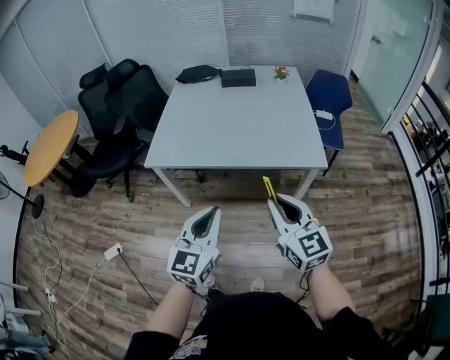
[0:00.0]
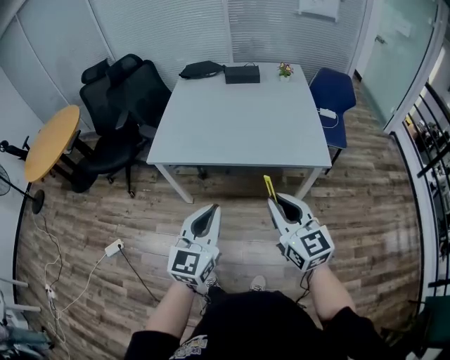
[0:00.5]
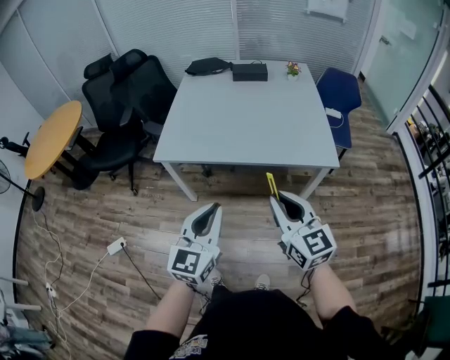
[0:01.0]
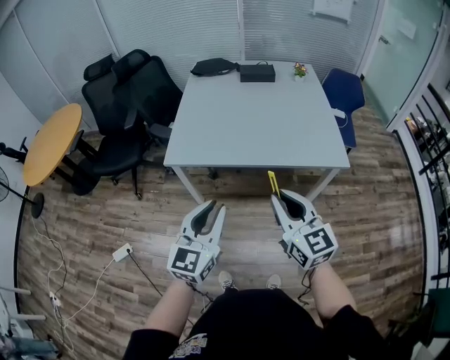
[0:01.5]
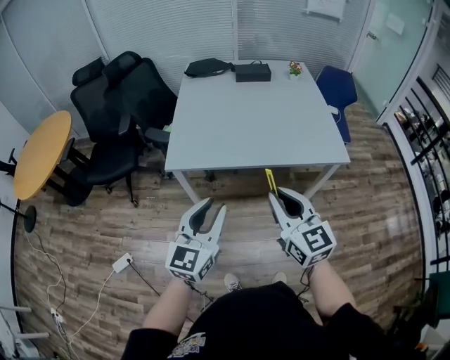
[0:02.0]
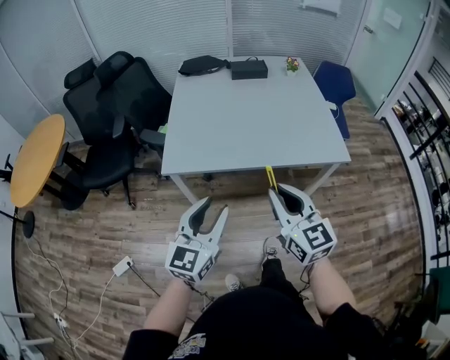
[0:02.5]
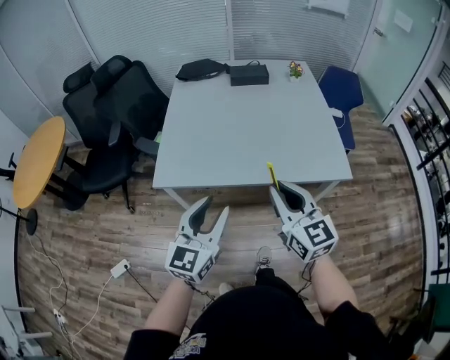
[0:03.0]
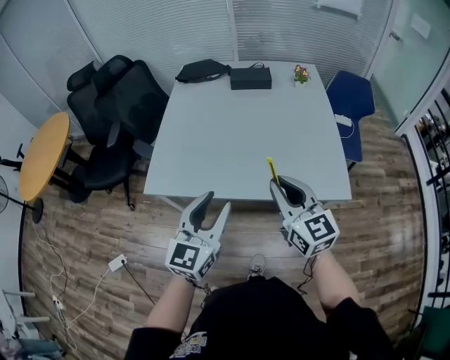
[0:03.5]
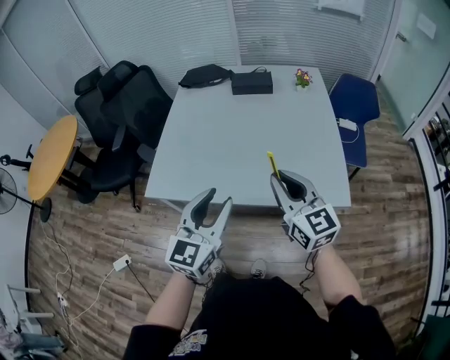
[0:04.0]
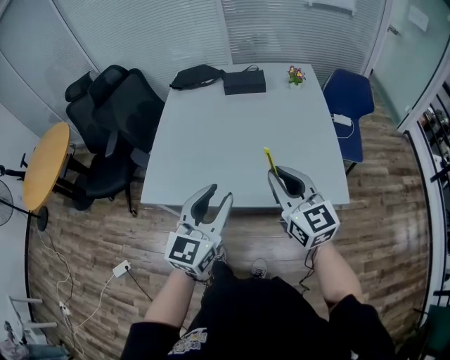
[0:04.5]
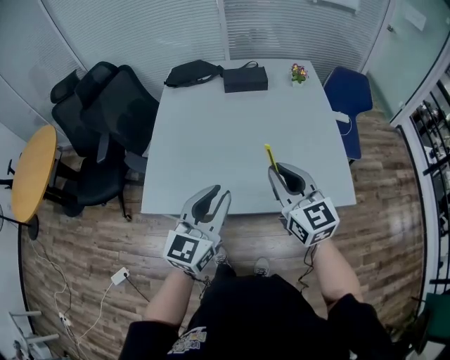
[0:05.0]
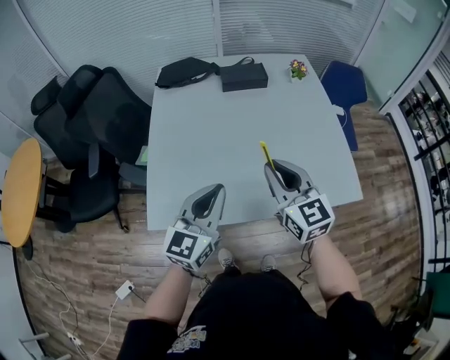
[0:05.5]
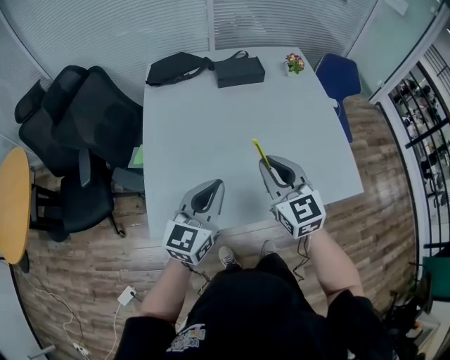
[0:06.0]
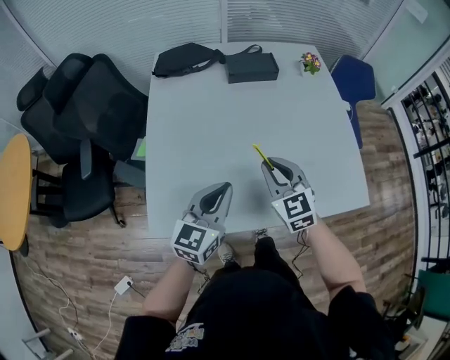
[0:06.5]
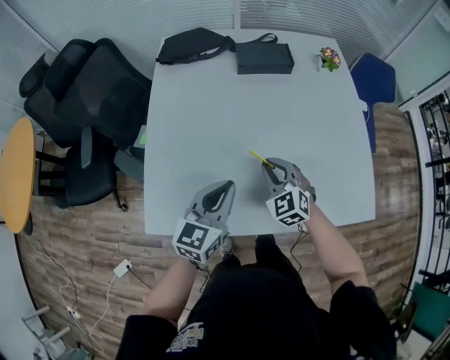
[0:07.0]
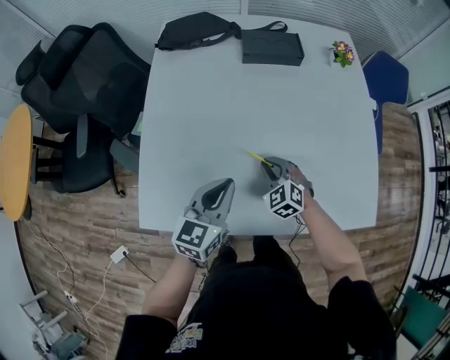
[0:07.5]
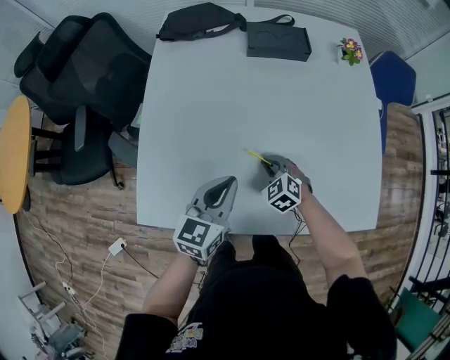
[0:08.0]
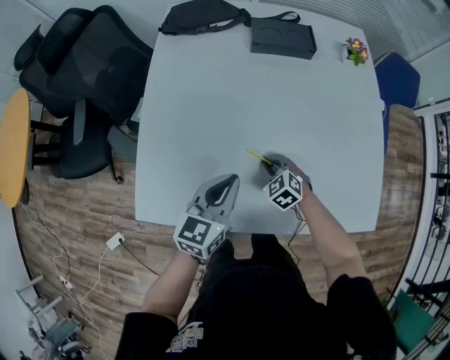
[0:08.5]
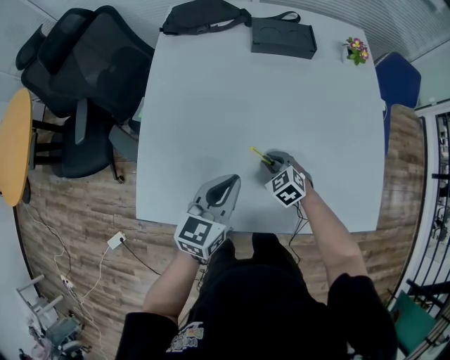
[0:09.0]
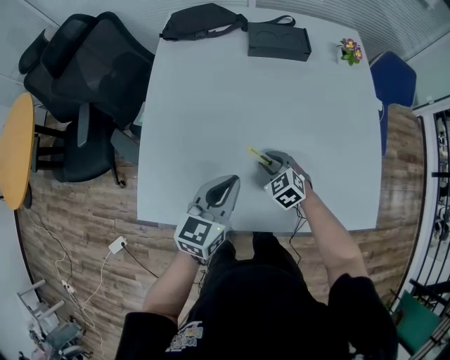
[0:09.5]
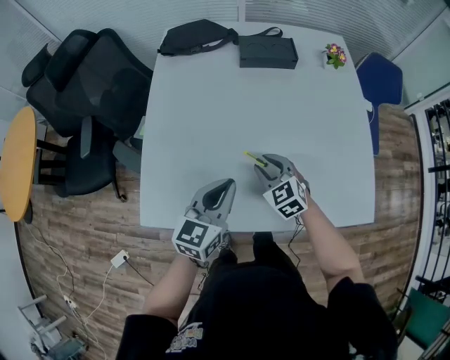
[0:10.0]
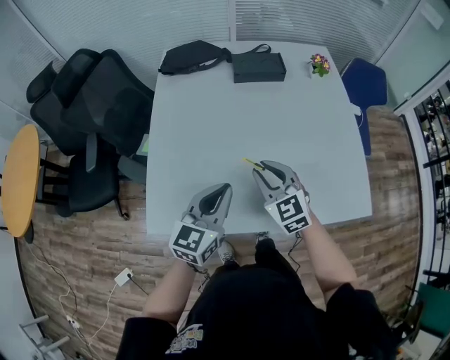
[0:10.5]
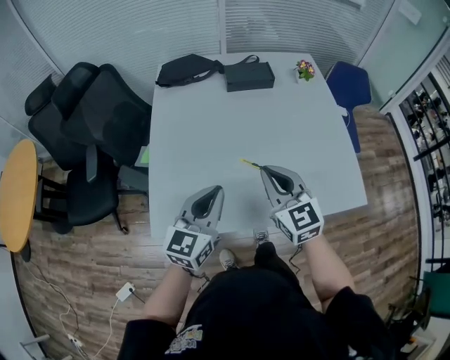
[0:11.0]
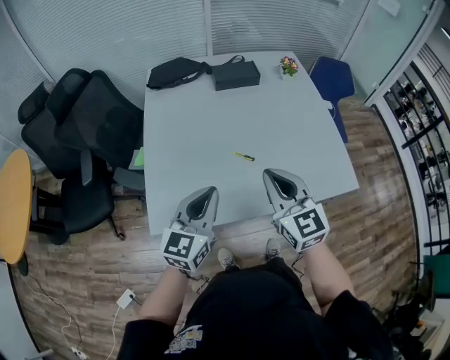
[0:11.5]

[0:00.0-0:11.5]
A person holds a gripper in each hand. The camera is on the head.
0:00.0 to 0:02.0: The grippers both shift to the left by roughly 20 cm. The left gripper opens up.
0:02.0 to 0:04.0: Both grippers travel together forward and to the right, roughly 30 cm.
0:04.0 to 0:06.0: The left gripper heads forward and to the left, covering approximately 25 cm, turns by about 20 degrees, and closes its fingers. Meanwhile the right gripper moves to the left and forward, roughly 25 cm, and changes its angle by about 20 degrees.
0:06.0 to 0:07.5: The right gripper travels downward and forward by about 25 cm, and points its fingers approximately 30 degrees further downward; the left gripper goes some 15 cm downward and forward.
0:07.5 to 0:09.5: The right gripper opens up.
0:09.5 to 0:11.5: The left gripper is displaced backward, upward and to the left by some 15 cm, while the right gripper shifts approximately 35 cm upward and backward, points its fingers approximately 40 degrees further upward, and closes up.

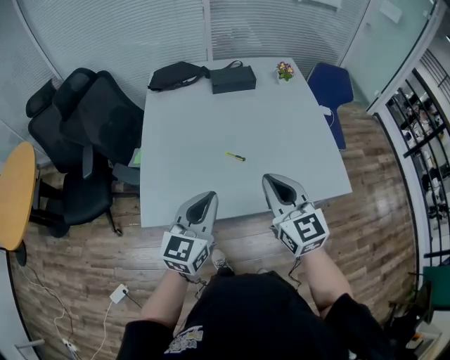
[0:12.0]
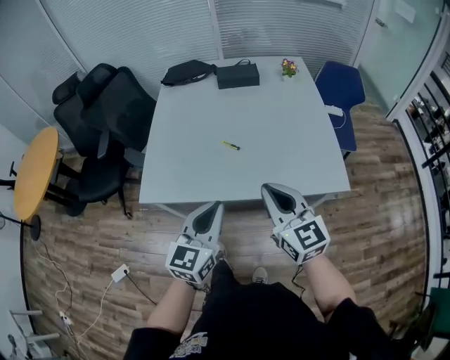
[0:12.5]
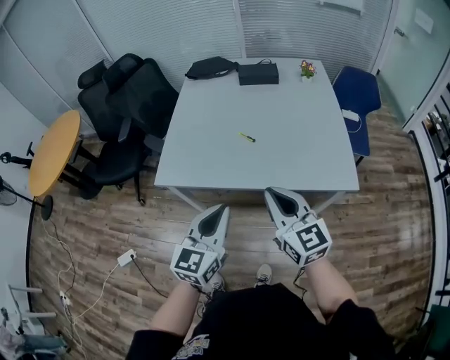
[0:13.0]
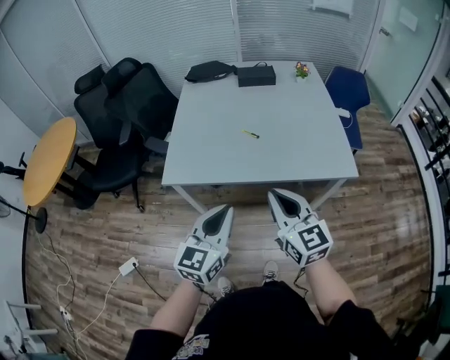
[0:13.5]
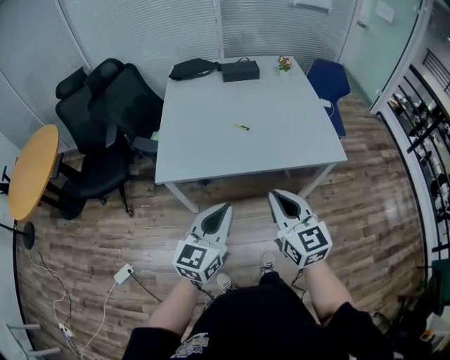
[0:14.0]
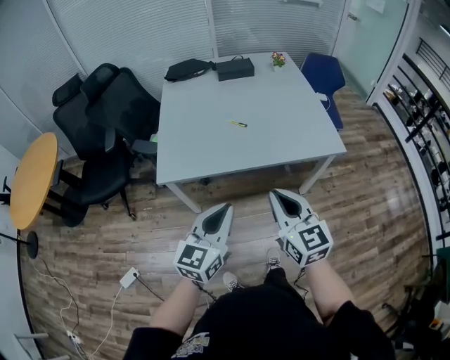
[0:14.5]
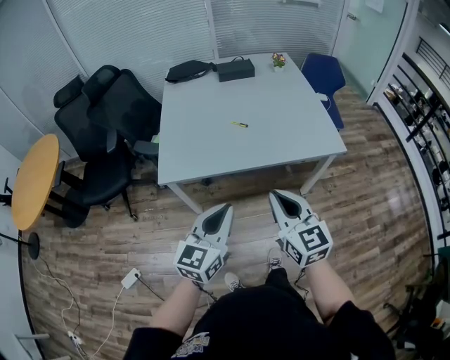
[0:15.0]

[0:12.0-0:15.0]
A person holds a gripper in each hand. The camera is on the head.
0:12.0 to 0:13.5: Both grippers move backward, about 20 cm.
0:13.5 to 0:15.0: The right gripper goes some 5 cm backward.

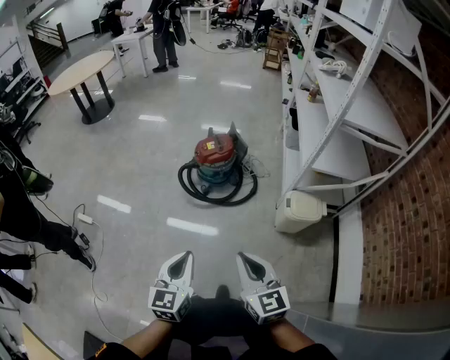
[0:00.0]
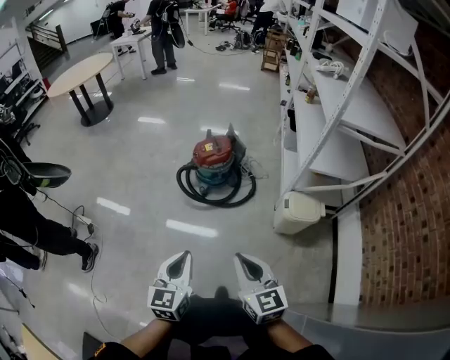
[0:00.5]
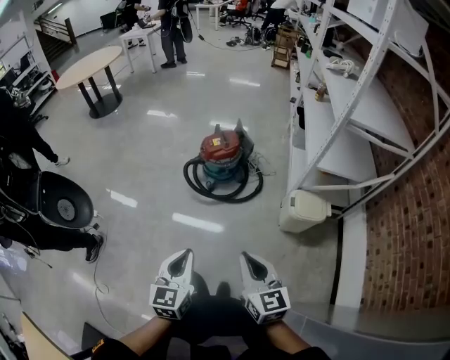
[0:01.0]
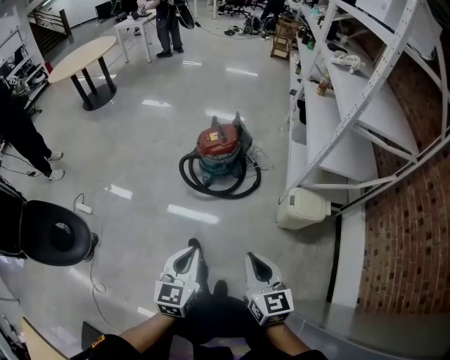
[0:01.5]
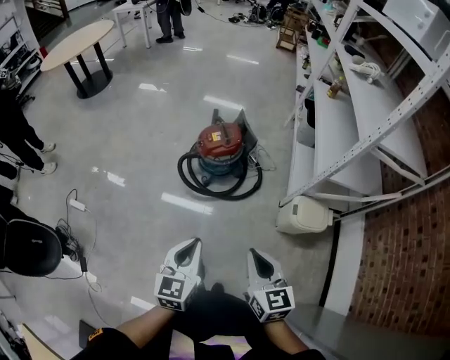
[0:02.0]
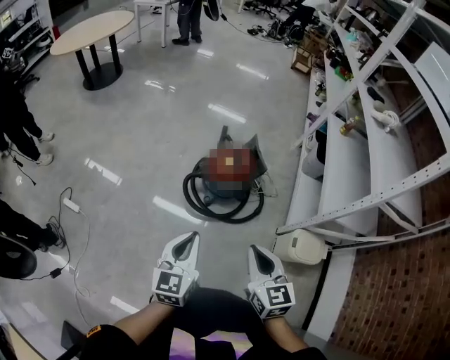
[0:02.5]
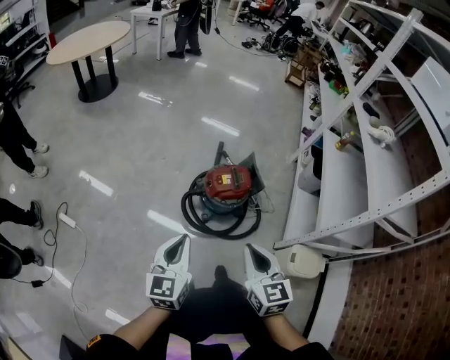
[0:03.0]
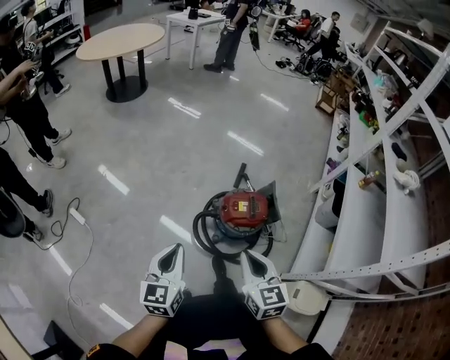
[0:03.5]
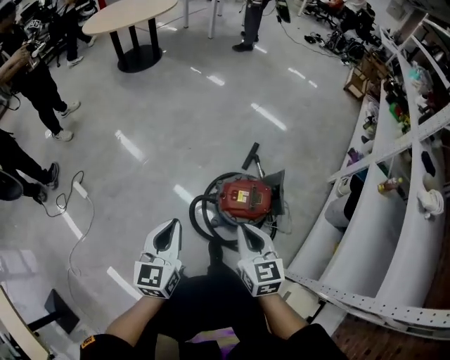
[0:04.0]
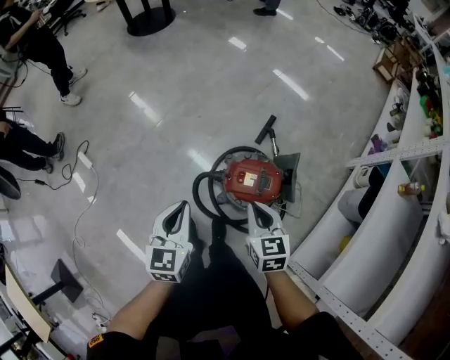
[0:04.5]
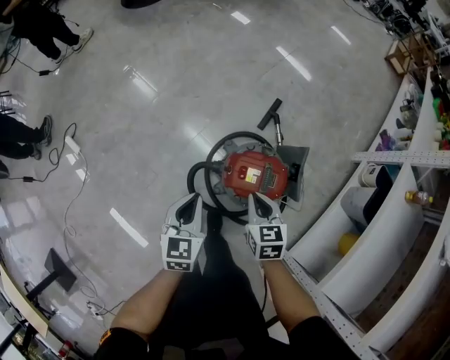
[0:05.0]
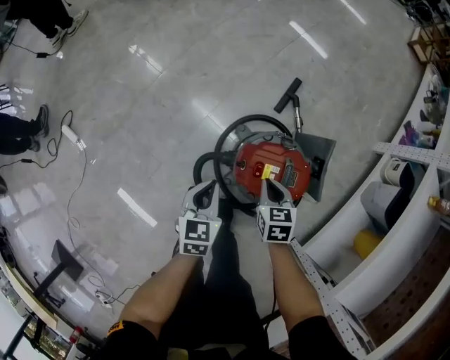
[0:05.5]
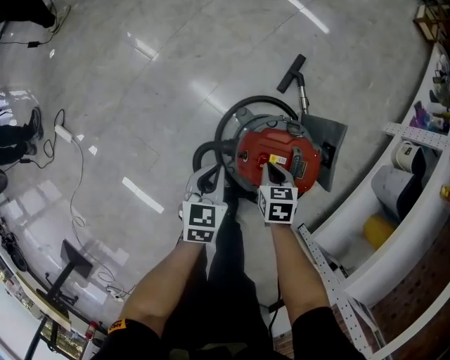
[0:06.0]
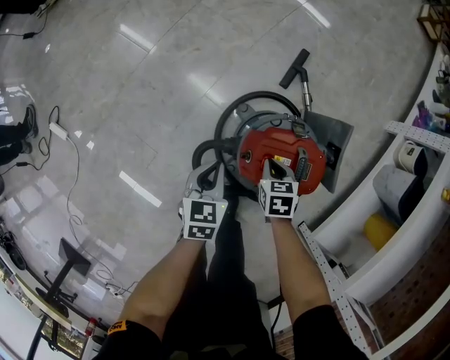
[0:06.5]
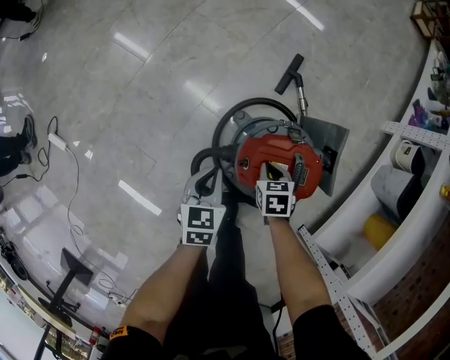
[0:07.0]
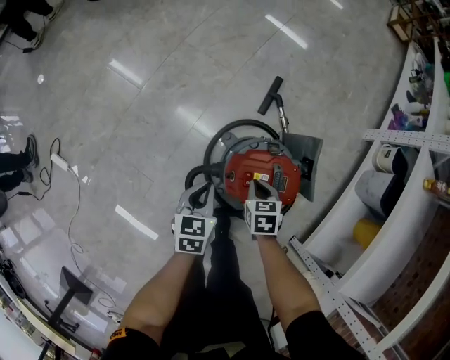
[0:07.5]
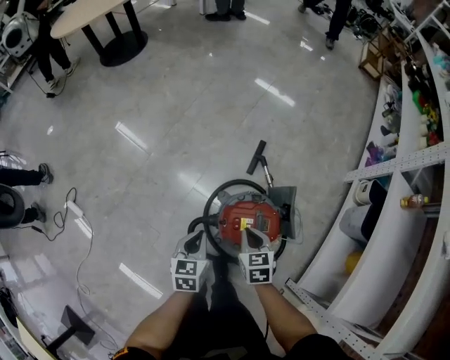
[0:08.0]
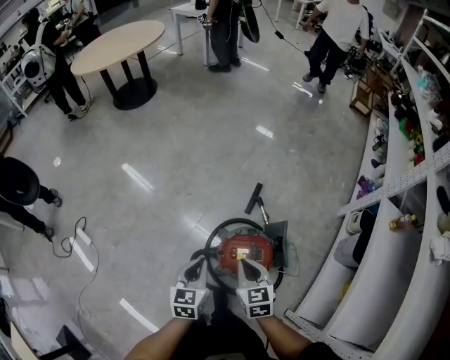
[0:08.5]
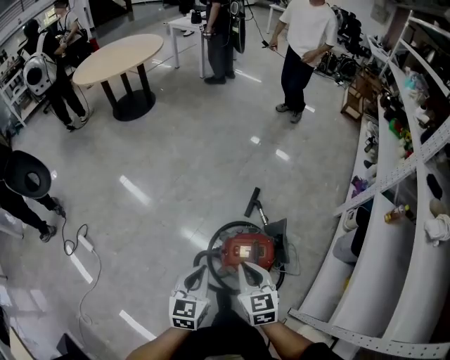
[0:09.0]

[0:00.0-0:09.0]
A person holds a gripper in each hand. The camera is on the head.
0:00.0 to 0:02.0: Both grippers travel together forward, about 15 cm.
0:02.0 to 0:04.5: Both grippers are carried some 50 cm. The left gripper changes its angle by about 30 degrees; the right gripper rotates about 30 degrees.
0:04.5 to 0:07.0: Both grippers travel together downward, roughly 35 cm. The left gripper swivels roughly 30 degrees; the right gripper tilts its fingers approximately 30 degrees downward.
0:07.0 to 0:09.0: The two grippers go about 35 cm upward. The left gripper turns by roughly 20 degrees. Meanwhile the right gripper tips its fingers upward by some 40 degrees.

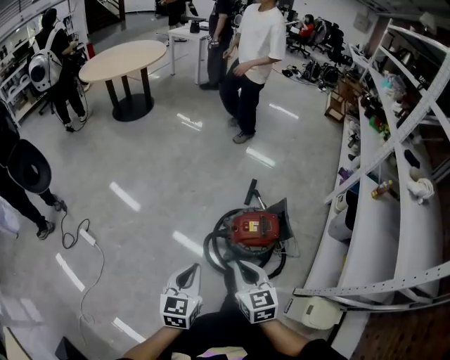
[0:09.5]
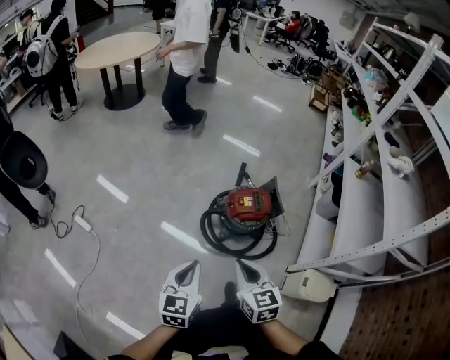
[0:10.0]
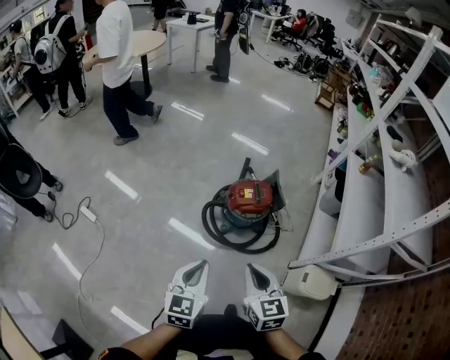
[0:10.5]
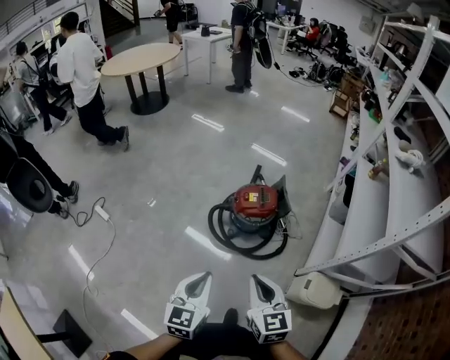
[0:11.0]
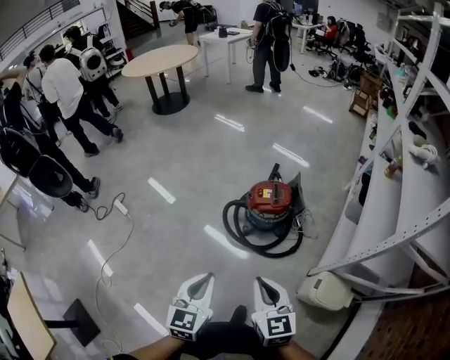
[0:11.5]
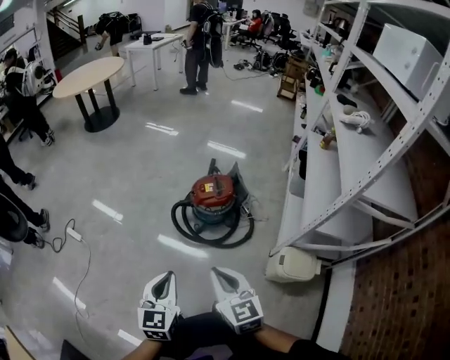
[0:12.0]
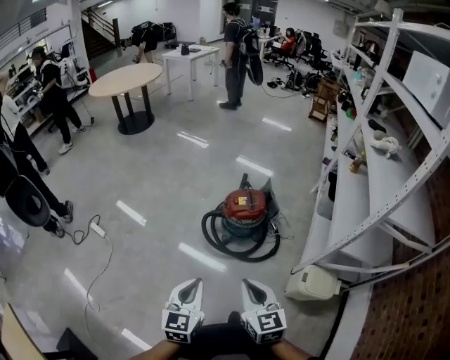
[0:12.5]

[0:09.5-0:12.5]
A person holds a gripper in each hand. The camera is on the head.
0:09.5 to 0:11.0: The two grippers go about 25 cm backward.
0:11.0 to 0:12.5: Both grippers travel together backward, approximately 5 cm.
